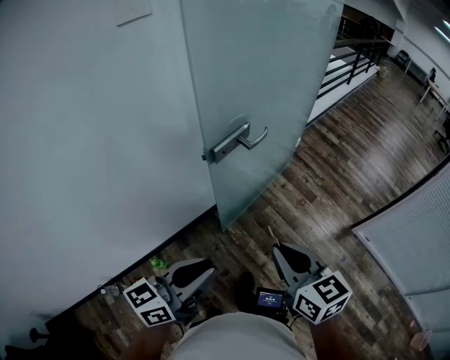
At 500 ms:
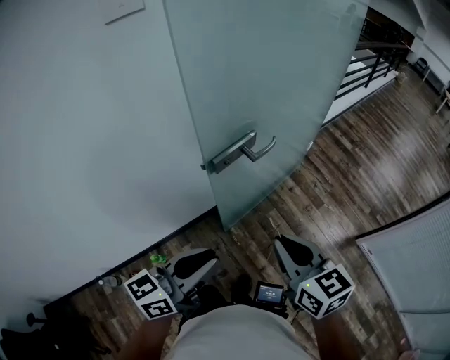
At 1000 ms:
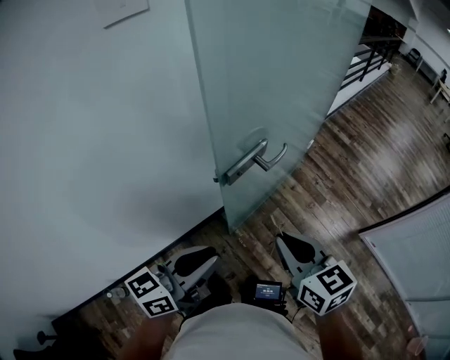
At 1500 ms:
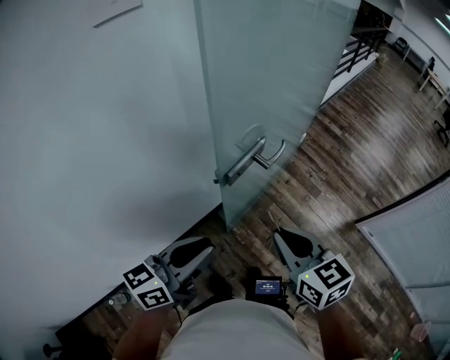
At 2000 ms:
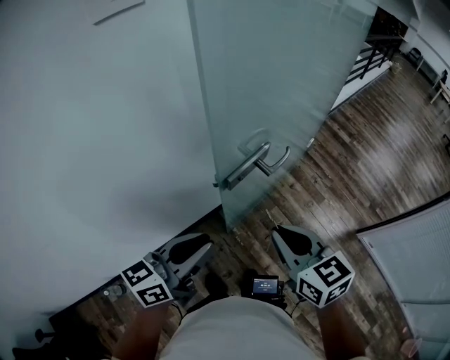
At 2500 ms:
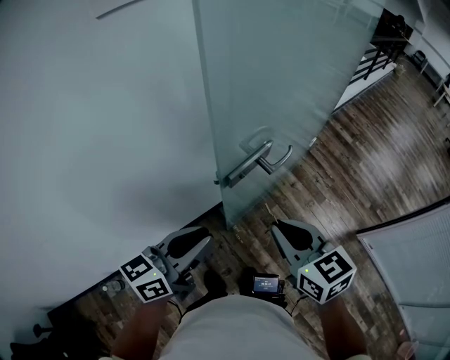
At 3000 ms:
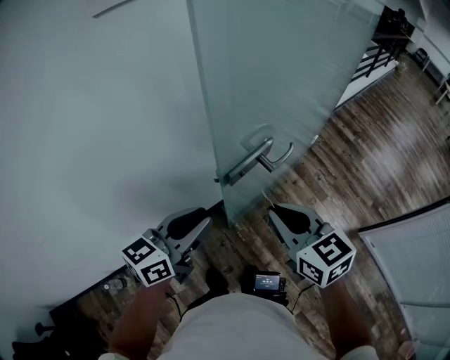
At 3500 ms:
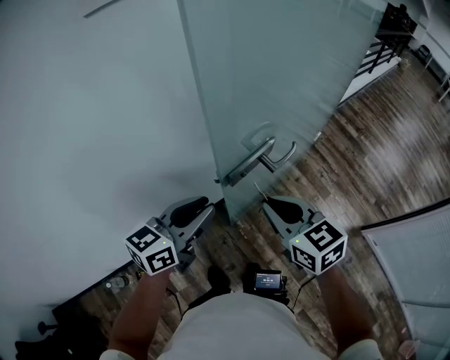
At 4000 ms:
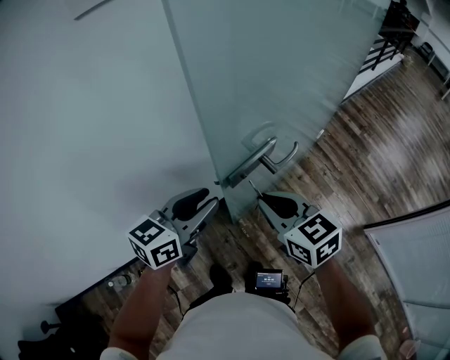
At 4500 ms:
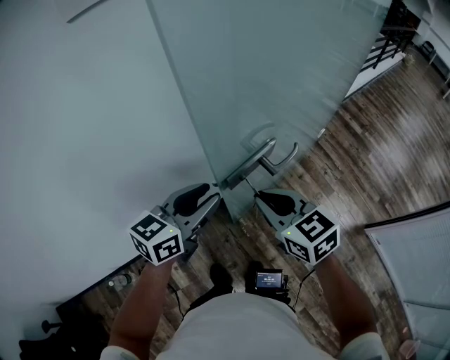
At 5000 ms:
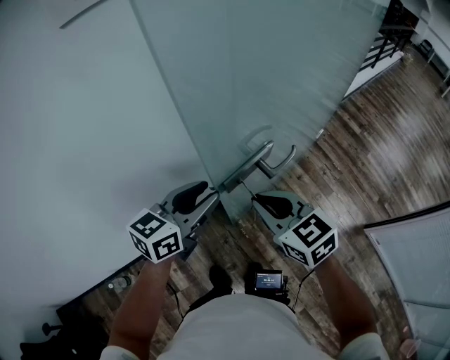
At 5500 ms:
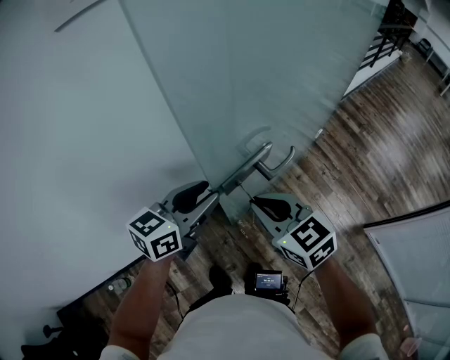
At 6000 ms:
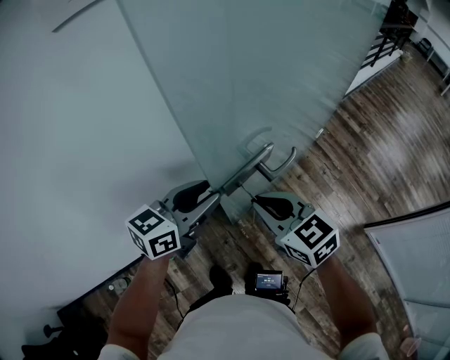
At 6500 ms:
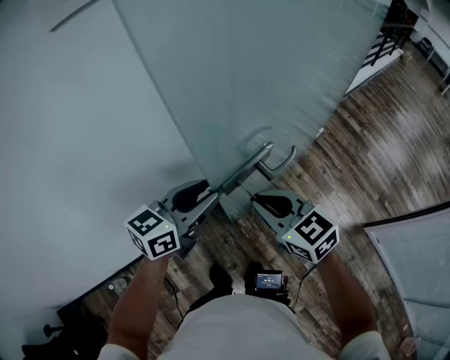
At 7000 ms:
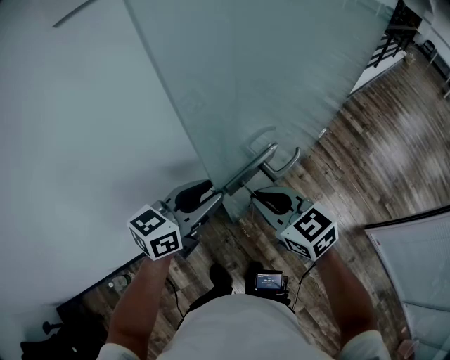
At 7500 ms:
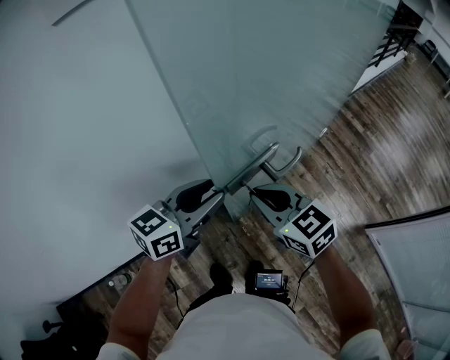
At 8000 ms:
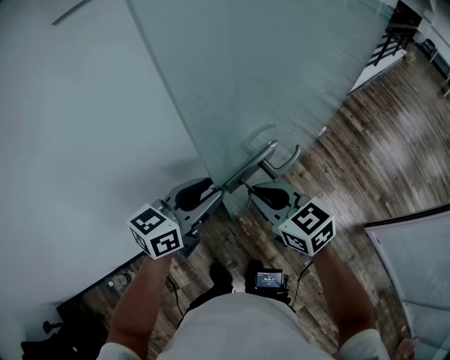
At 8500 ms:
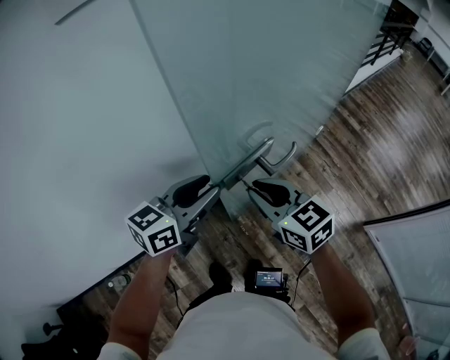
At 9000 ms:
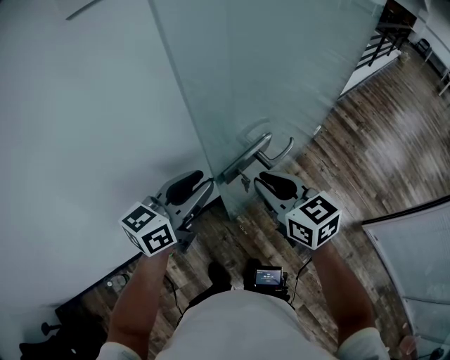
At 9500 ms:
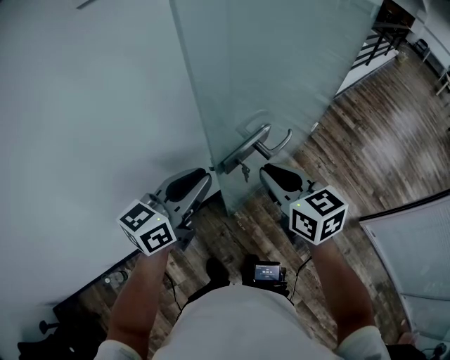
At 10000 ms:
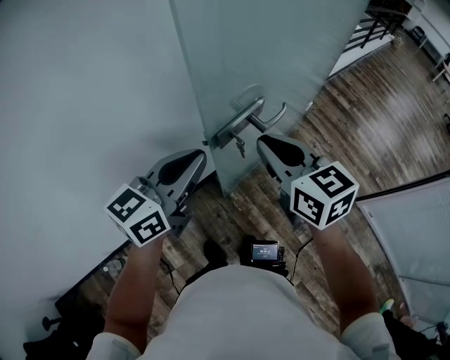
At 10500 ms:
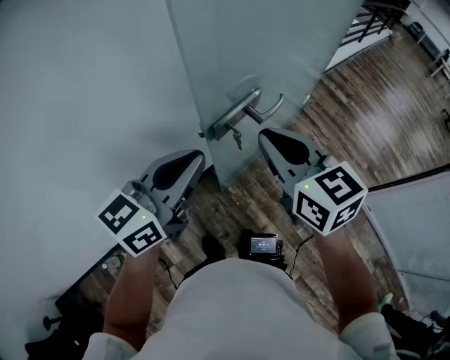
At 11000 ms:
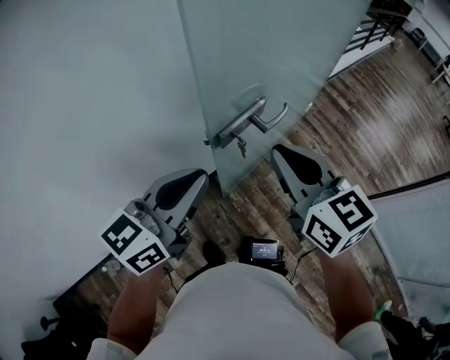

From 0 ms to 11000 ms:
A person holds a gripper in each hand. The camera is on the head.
From 0 ms to 2000 ms: The left gripper shifts approximately 15 cm forward. The right gripper is displaced forward and to the left by some 15 cm.
From 2000 ms to 3500 ms: The two grippers go some 5 cm forward.
From 3500 ms to 5500 ms: The left gripper goes approximately 5 cm forward.
From 5500 ms to 9000 ms: The grippers move only a little.
From 9000 ms to 11000 ms: The left gripper heads backward and upward, covering some 10 cm, and closes its fingers. The right gripper travels upward and backward by approximately 10 cm.

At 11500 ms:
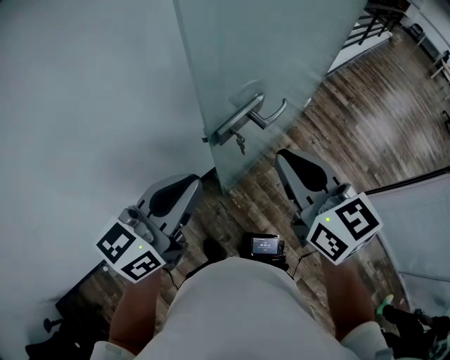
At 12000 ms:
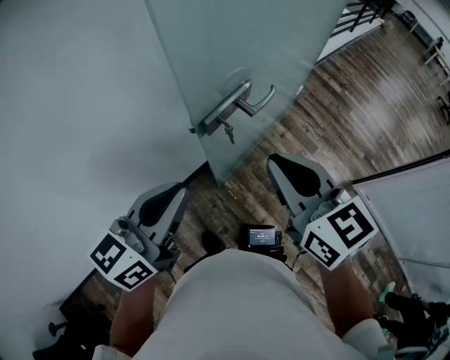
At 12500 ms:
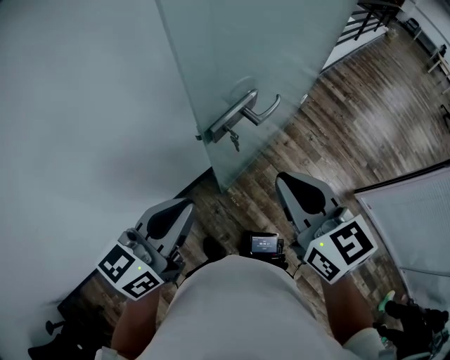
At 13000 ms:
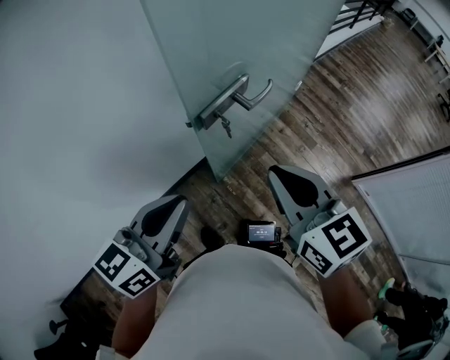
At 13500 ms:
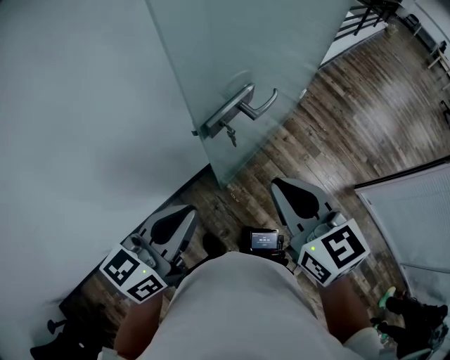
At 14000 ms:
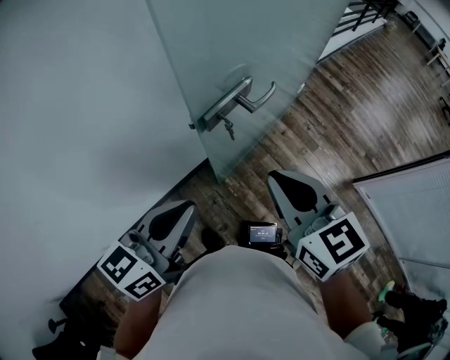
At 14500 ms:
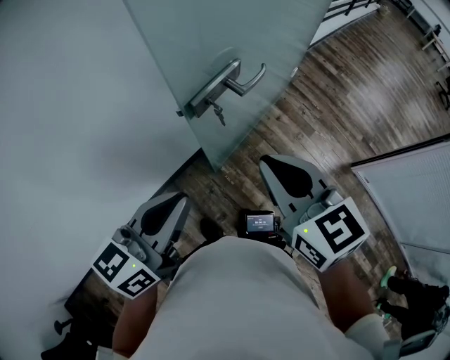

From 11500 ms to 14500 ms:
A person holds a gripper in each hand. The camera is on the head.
From 11500 ms to 13000 ms: The two grippers go approximately 5 cm backward.
From 13000 ms to 14500 ms: There are only small adjustments of the grippers.

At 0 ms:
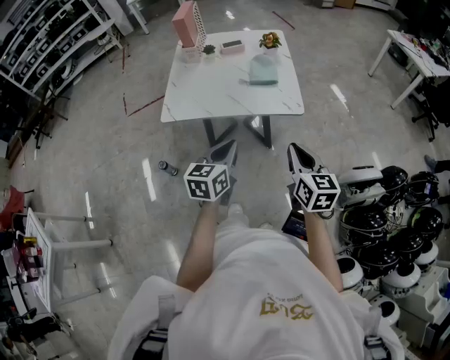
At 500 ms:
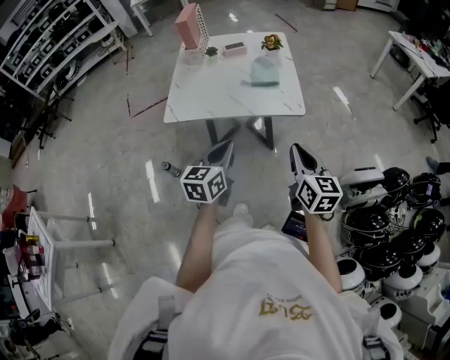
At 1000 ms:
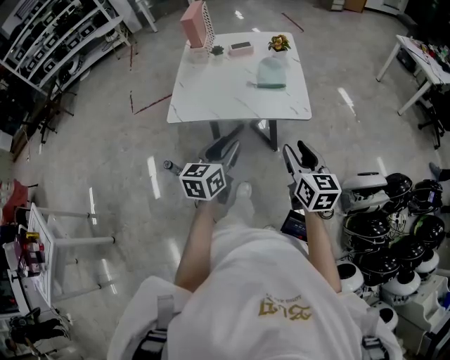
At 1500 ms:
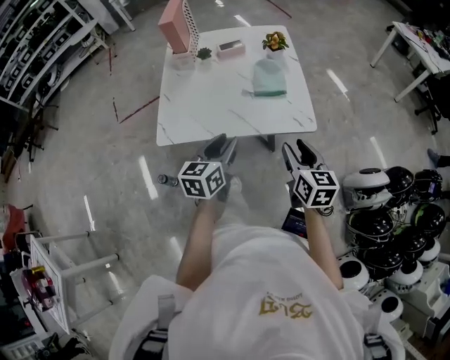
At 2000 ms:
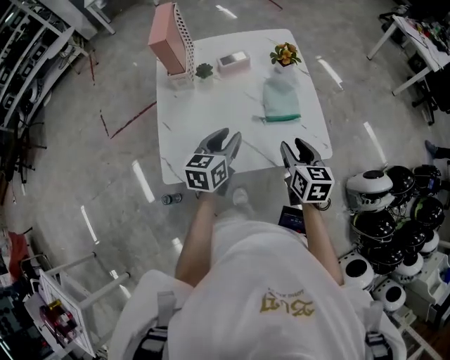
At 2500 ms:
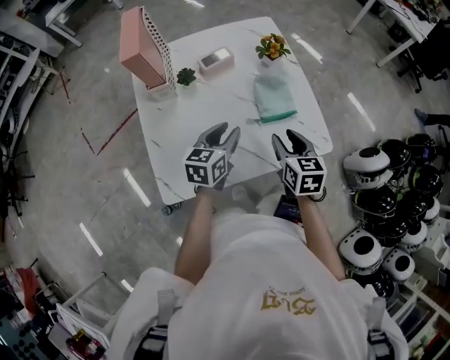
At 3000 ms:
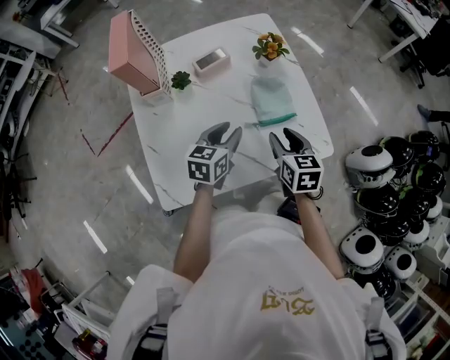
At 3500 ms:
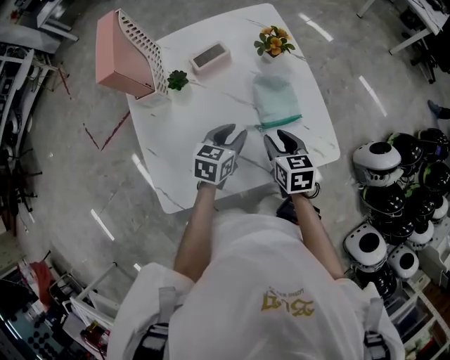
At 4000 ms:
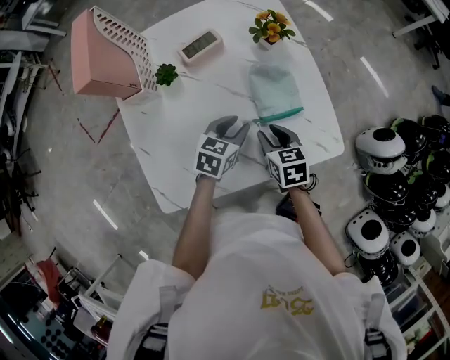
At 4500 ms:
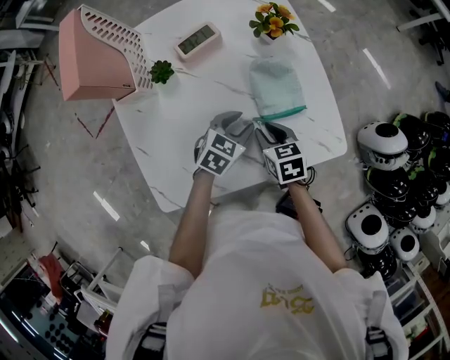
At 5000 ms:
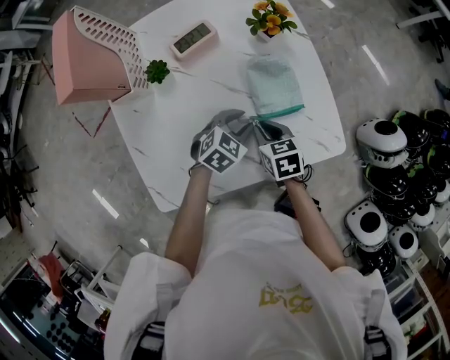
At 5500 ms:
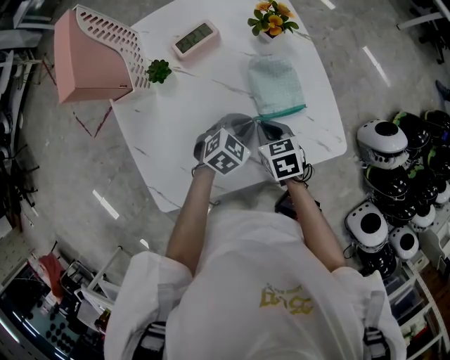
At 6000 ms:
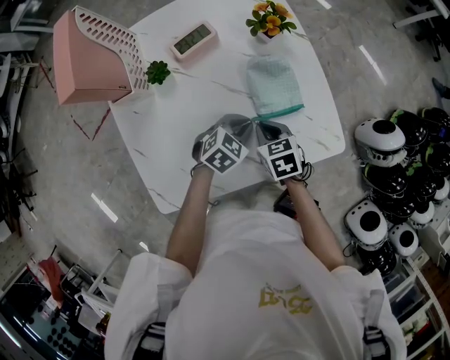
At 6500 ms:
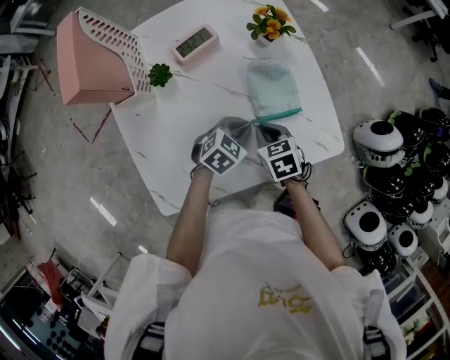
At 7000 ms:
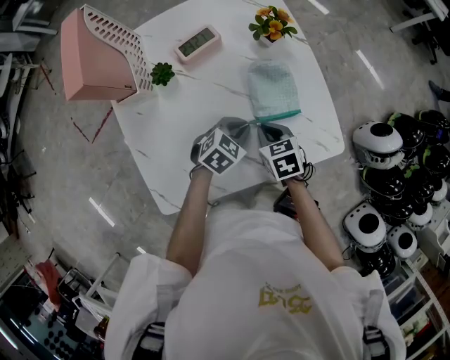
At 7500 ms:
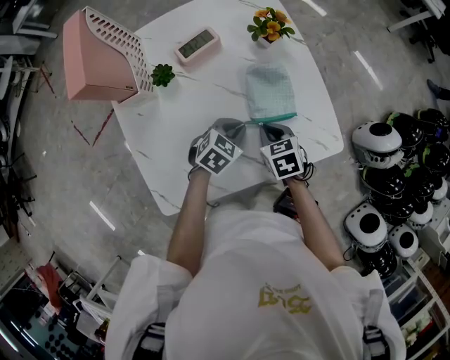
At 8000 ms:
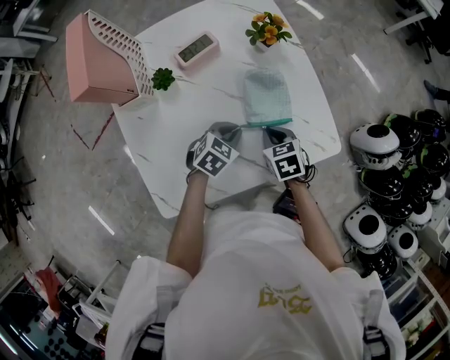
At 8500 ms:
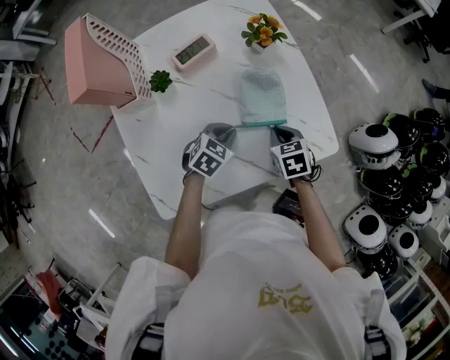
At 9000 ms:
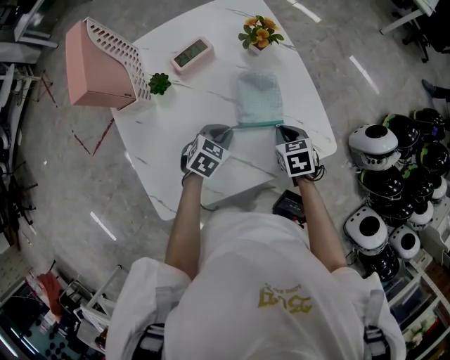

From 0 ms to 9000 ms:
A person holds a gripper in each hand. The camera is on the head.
From 0 ms to 2000 ms: The right gripper travels forward and to the left by approximately 30 cm, and opens up. Meanwhile the left gripper shifts approximately 35 cm forward, and opens up.
From 2000 ms to 4500 ms: The left gripper travels downward and forward by approximately 20 cm, and rotates about 40 degrees. The right gripper goes some 20 cm downward, forward and to the left, and rotates about 20 degrees.
From 4500 ms to 7000 ms: The left gripper closes up. Meanwhile the right gripper closes its fingers.
From 7000 ms to 9000 ms: The right gripper shifts about 10 cm to the right.

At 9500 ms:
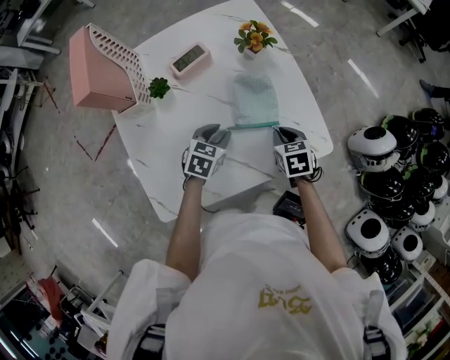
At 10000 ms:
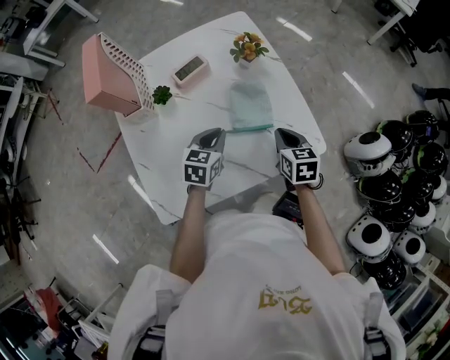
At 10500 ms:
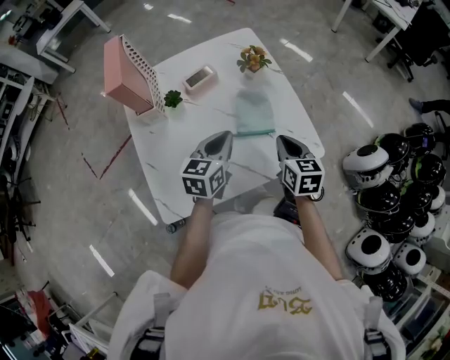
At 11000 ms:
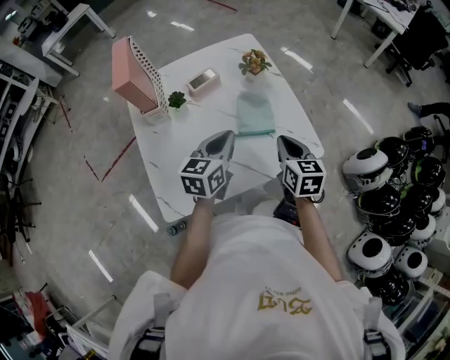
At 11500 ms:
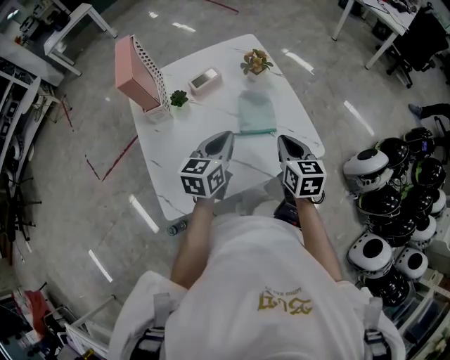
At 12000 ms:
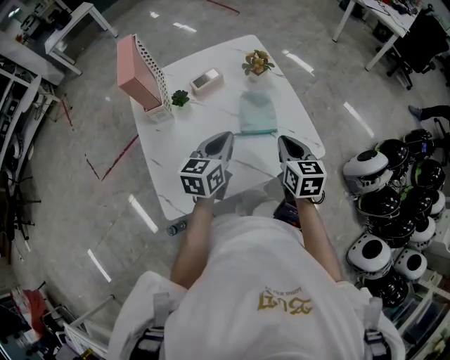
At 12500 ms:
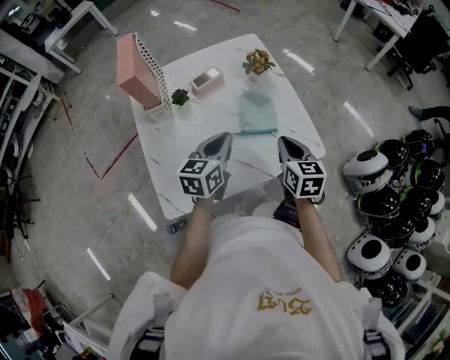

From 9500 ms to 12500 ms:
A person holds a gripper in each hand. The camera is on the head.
From 9500 ms to 11000 ms: Both grippers travel together upward, about 20 cm. The left gripper changes its angle by roughly 30 degrees, and closes its fingers. The right gripper rotates about 30 degrees.
From 11000 ms to 12500 ms: The grippers make only small movements.
